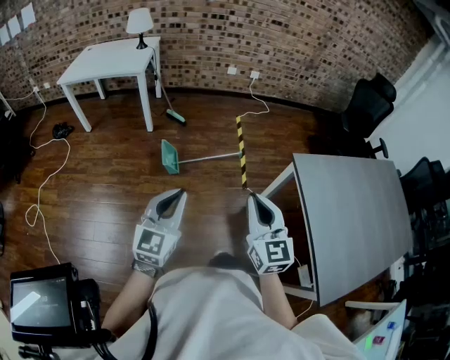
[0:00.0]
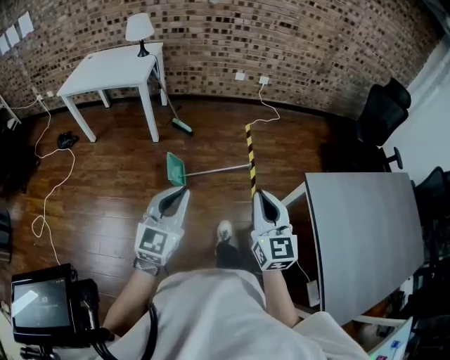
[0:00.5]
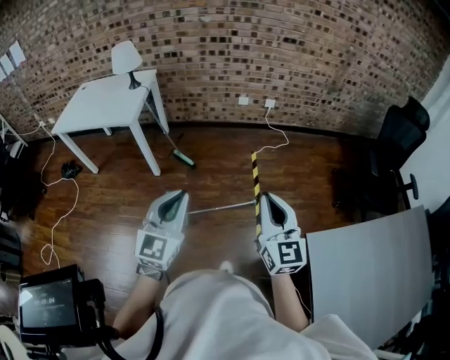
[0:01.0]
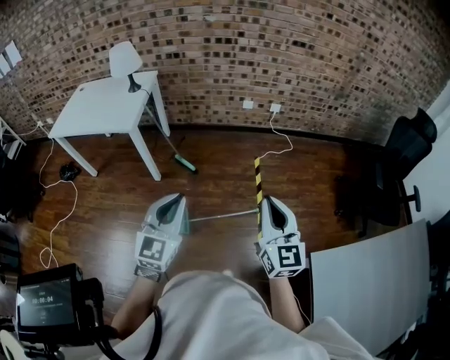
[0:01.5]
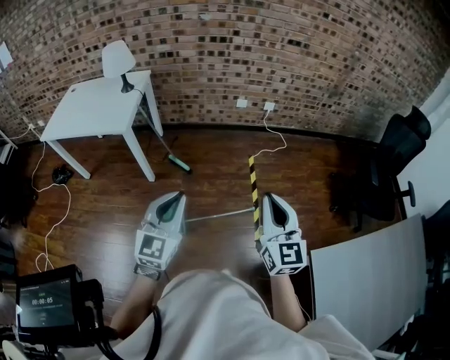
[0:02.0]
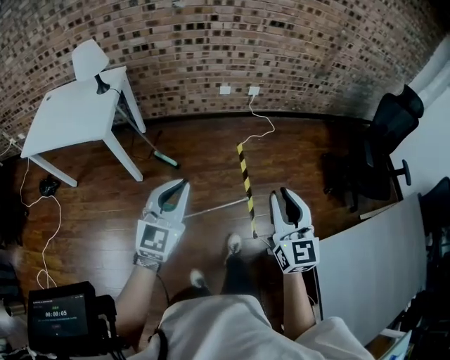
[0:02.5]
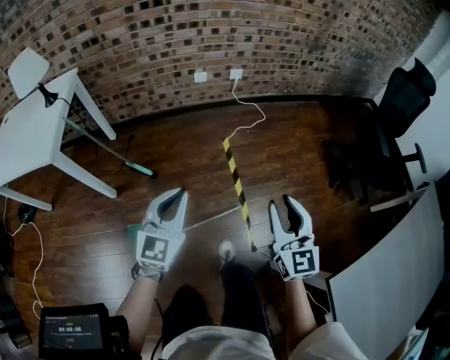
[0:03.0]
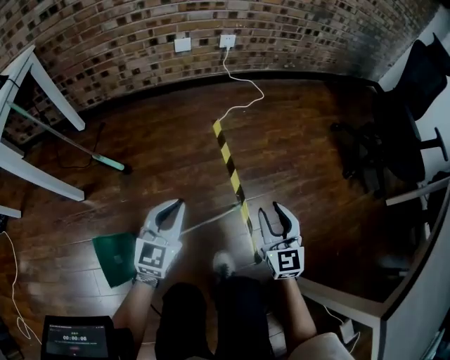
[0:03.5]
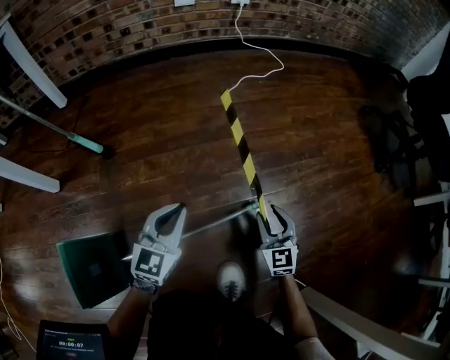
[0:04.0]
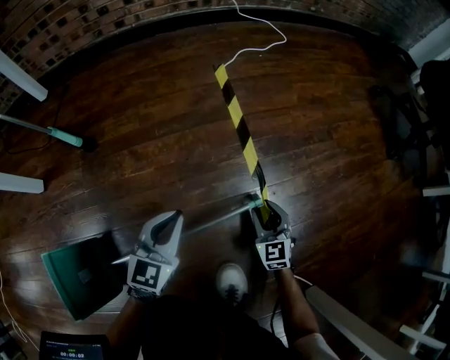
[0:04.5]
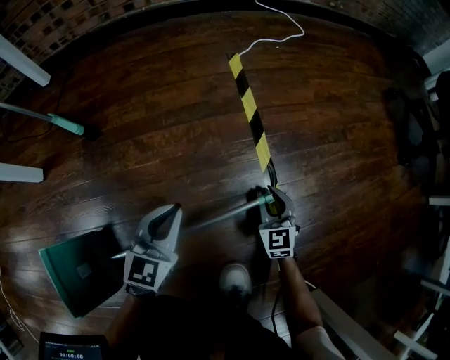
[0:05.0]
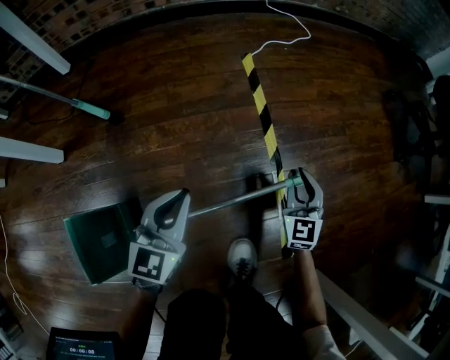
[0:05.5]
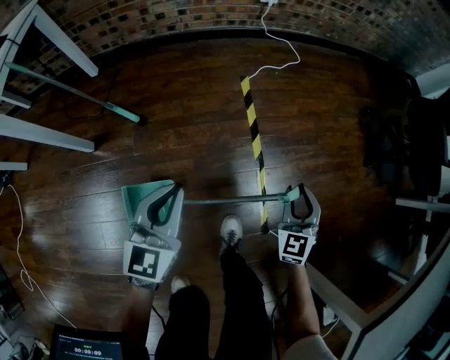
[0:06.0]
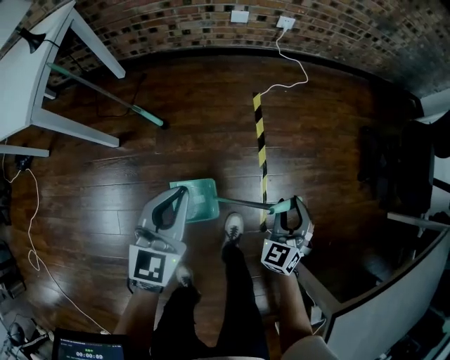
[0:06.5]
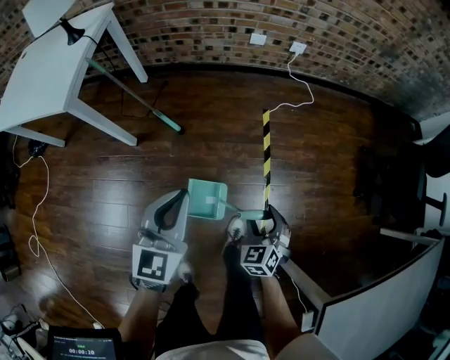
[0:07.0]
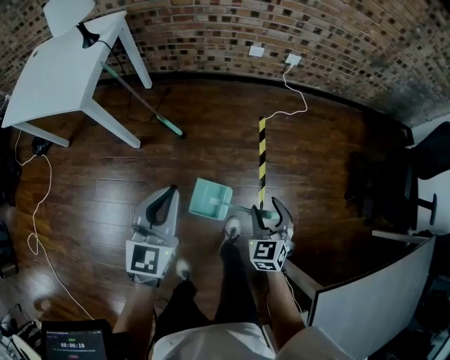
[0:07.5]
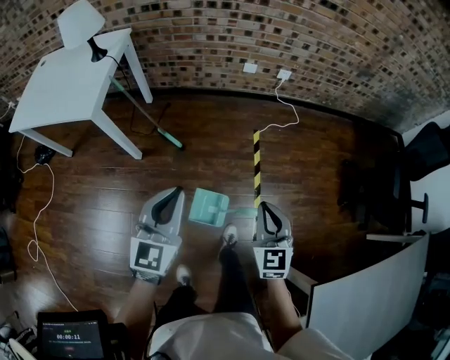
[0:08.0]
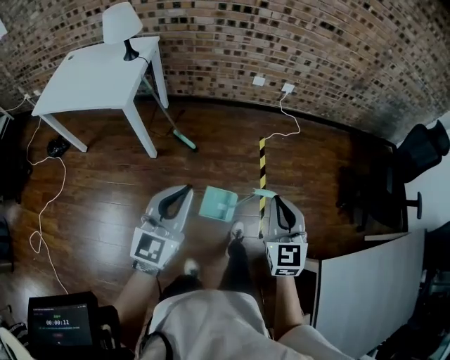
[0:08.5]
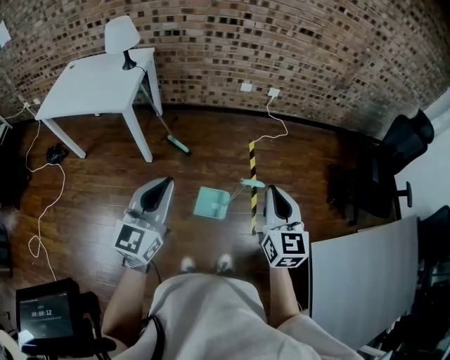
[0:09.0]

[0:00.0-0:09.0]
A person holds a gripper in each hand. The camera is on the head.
0:00.0 to 0:02.0: The pair of grippers is taken forward, roughly 50 cm.
0:02.0 to 0:04.5: The grippers both shift downward by some 1 m. The right gripper swivels approximately 30 degrees, and opens. Meanwhile the left gripper changes its angle by approximately 30 degrees.
0:04.5 to 0:07.0: Both grippers travel together upward, about 60 cm. The right gripper swivels some 20 degrees, and opens up, while the left gripper turns by roughly 20 degrees.
0:07.0 to 0:09.0: The two grippers go roughly 40 cm upward and backward. The right gripper points its fingers approximately 30 degrees further upward, and closes up.

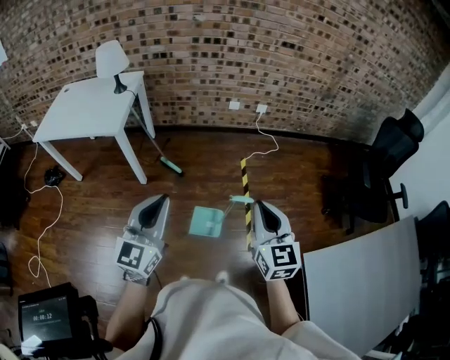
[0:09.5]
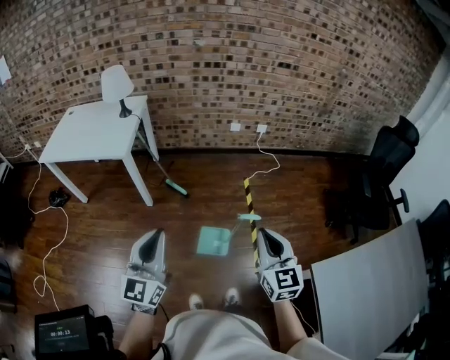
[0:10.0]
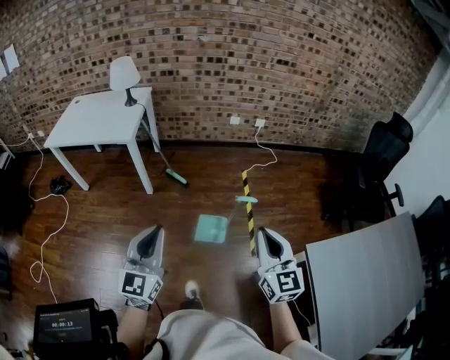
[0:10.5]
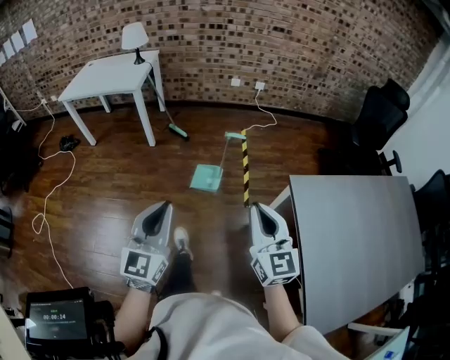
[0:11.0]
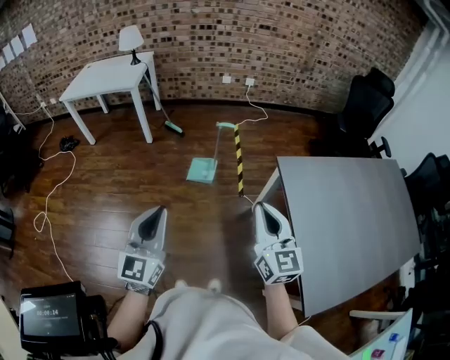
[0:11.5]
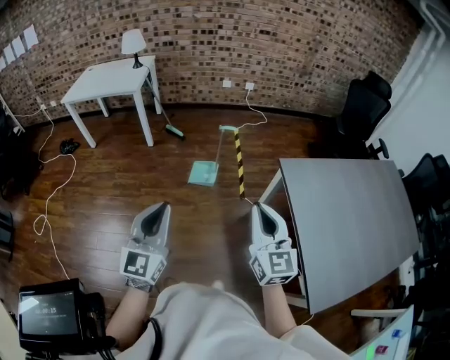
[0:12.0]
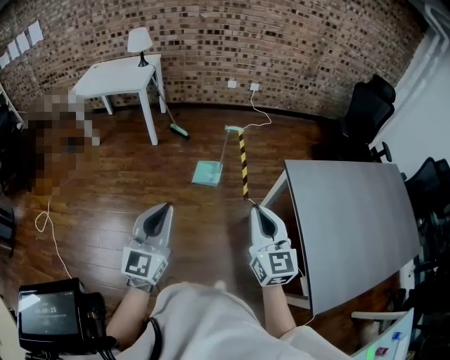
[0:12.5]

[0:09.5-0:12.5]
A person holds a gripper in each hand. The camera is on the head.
0:09.5 to 0:11.0: Both grippers travel together backward, approximately 40 cm.
0:11.0 to 0:12.5: The two grippers go some 15 cm backward.

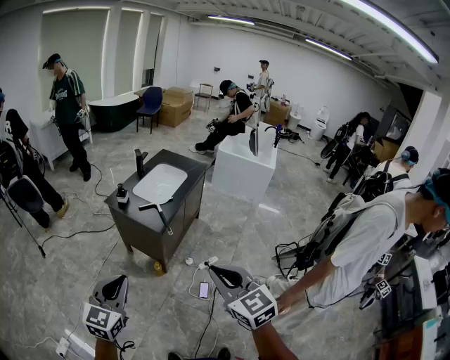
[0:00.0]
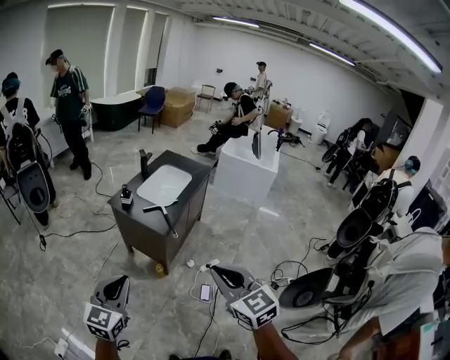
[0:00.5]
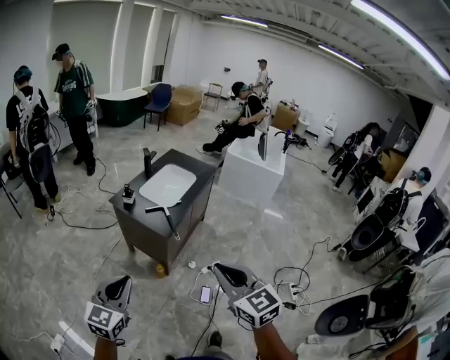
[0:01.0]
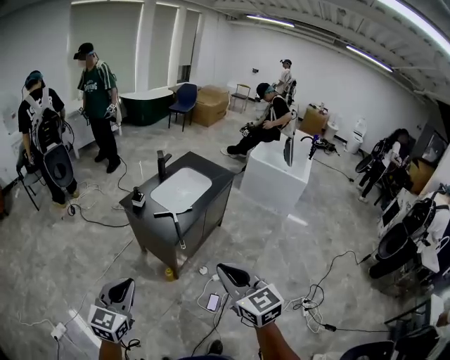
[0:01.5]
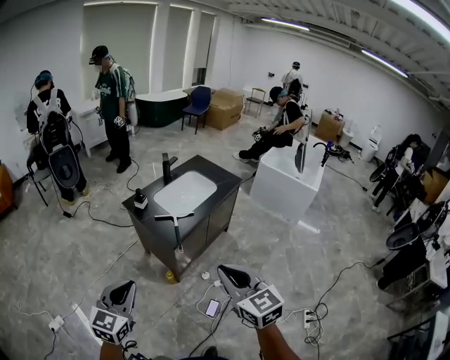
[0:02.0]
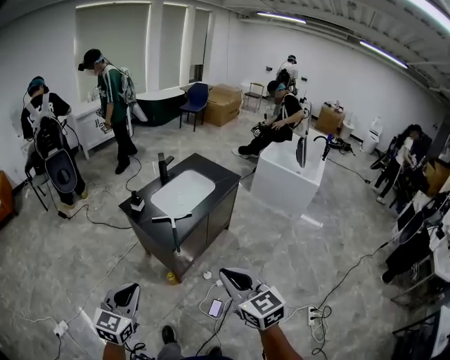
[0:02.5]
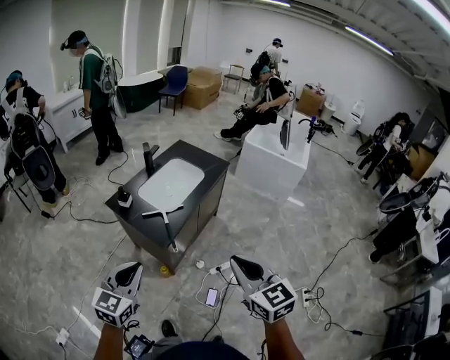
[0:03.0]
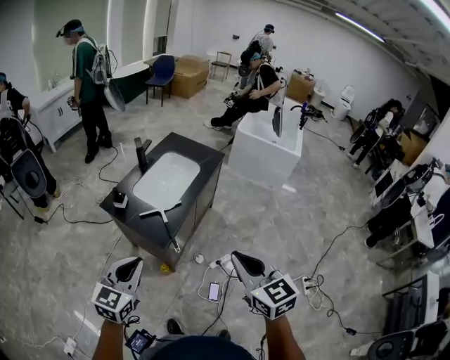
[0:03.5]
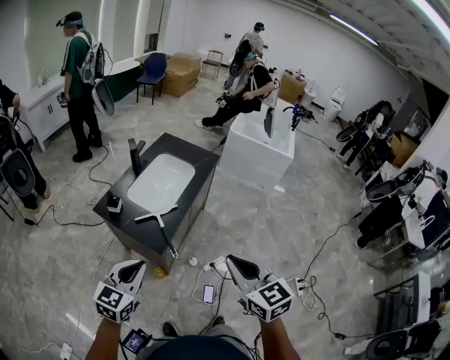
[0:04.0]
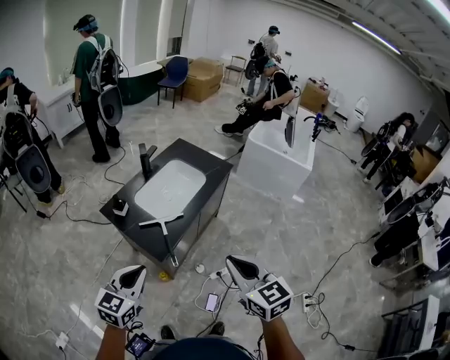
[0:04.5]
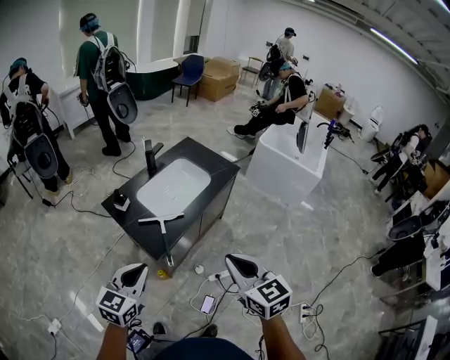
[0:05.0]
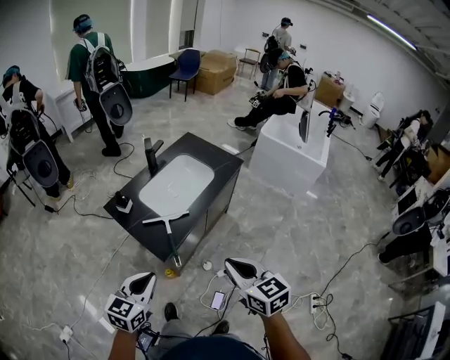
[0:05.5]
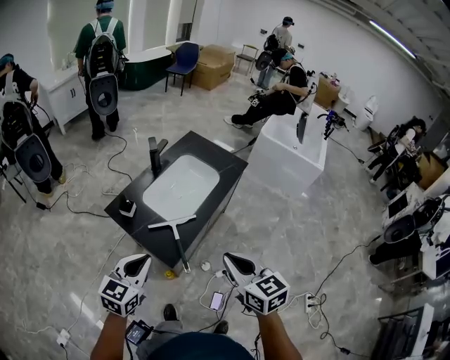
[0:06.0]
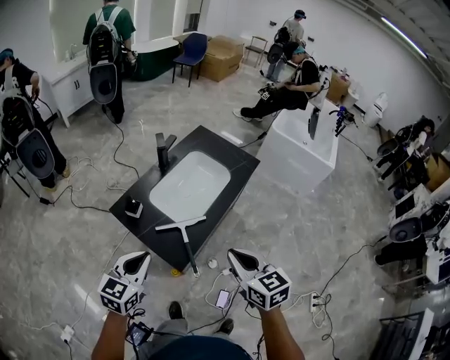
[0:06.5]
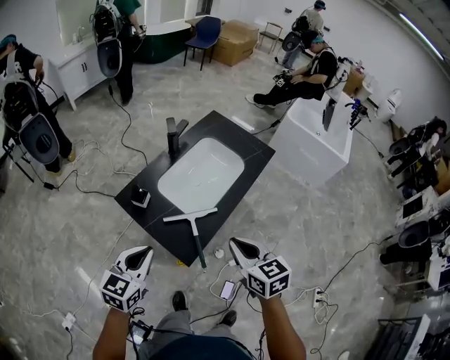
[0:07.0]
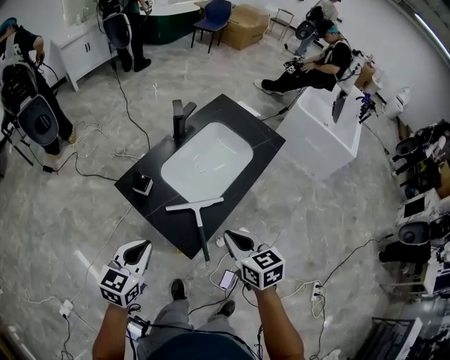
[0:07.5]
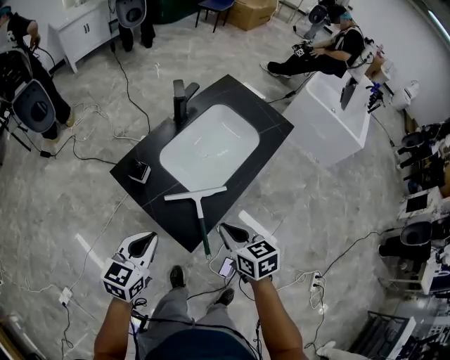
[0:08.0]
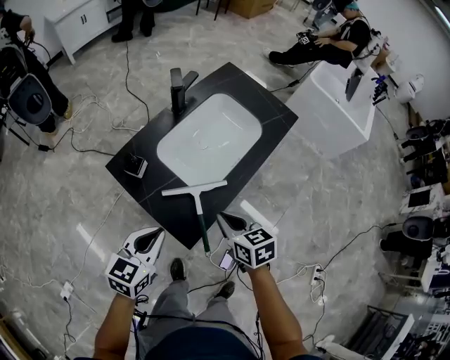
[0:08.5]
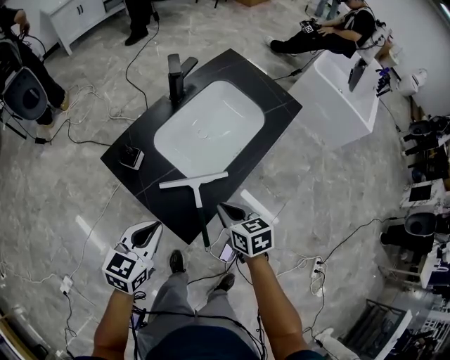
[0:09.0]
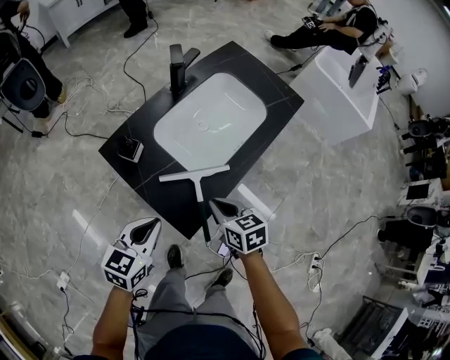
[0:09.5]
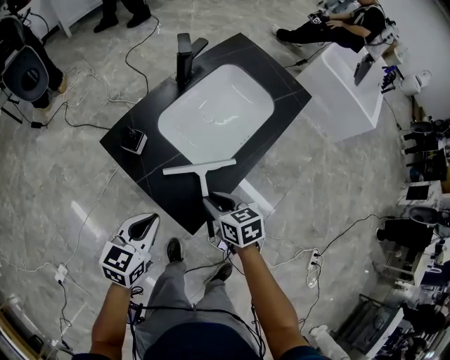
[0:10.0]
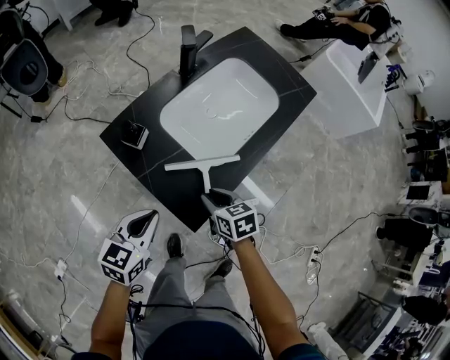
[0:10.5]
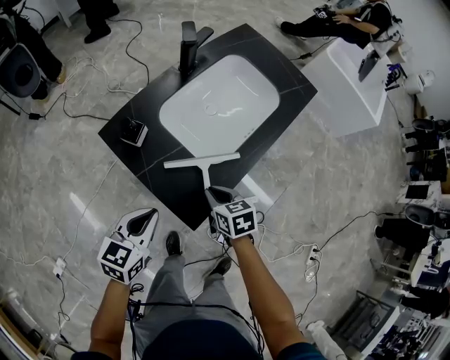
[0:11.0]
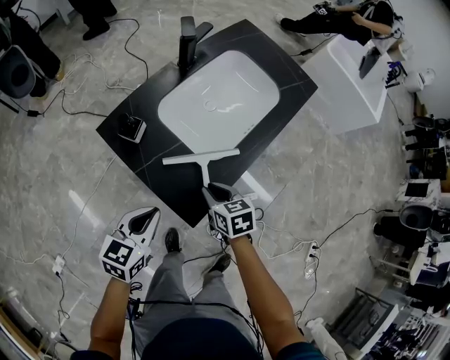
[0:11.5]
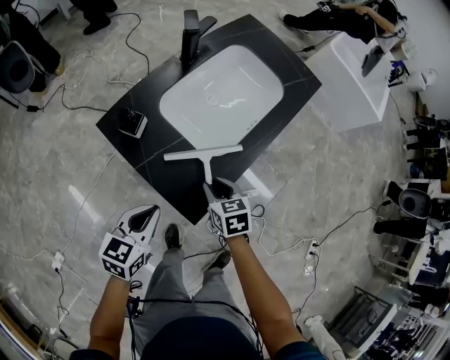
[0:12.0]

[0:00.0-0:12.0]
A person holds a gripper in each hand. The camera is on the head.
0:00.0 to 0:02.0: Both grippers move forward and to the right, some 20 cm.
0:02.0 to 0:04.0: The left gripper moves forward, some 25 cm, and swivels roughly 20 degrees; the right gripper moves forward, roughly 15 cm.
0:04.0 to 0:06.0: The left gripper is displaced forward by approximately 15 cm; the right gripper is displaced forward and downward by approximately 15 cm.
0:06.0 to 0:08.0: The left gripper shifts approximately 20 cm downward, forward and to the left. Meanwhile the right gripper travels downward and forward by approximately 25 cm, and changes its angle by some 20 degrees.
0:08.0 to 0:10.0: The grippers both shift downward by approximately 10 cm. The right gripper opens its fingers.
0:10.0 to 0:12.0: The right gripper shifts some 5 cm downward.

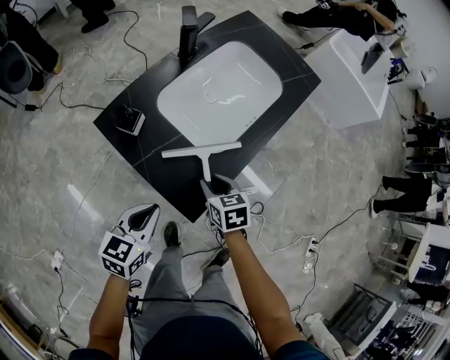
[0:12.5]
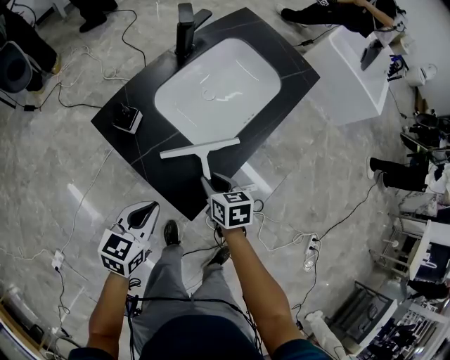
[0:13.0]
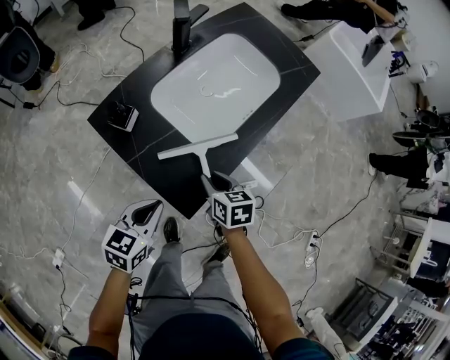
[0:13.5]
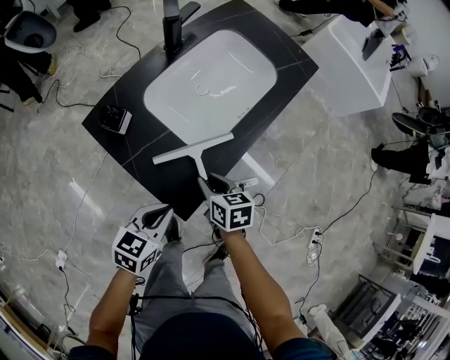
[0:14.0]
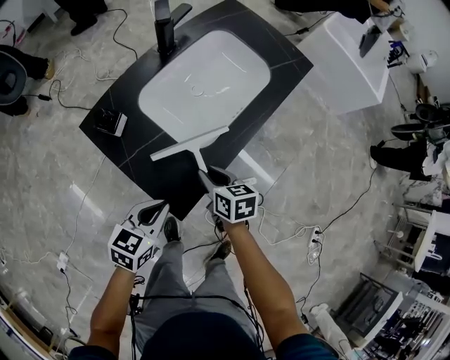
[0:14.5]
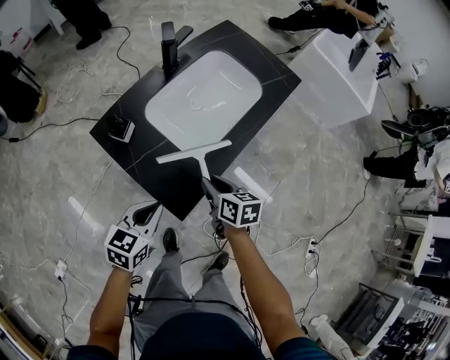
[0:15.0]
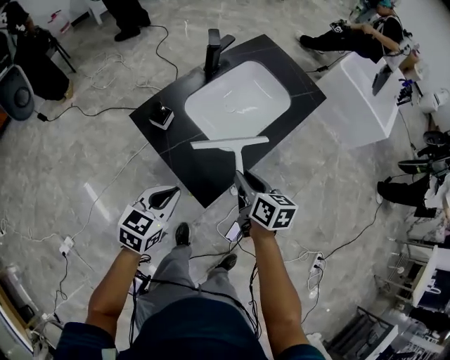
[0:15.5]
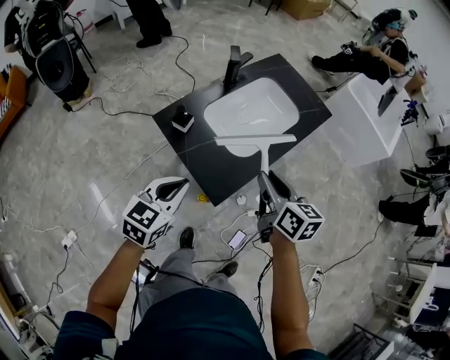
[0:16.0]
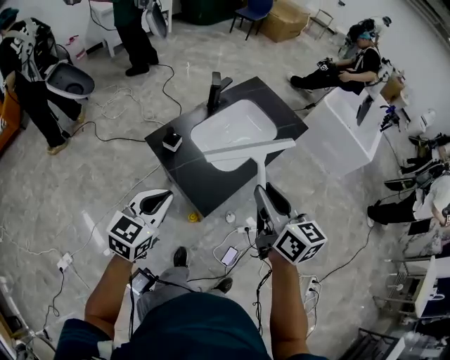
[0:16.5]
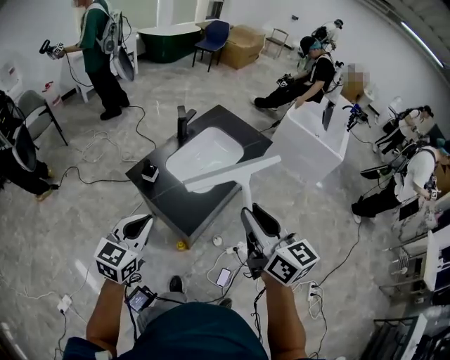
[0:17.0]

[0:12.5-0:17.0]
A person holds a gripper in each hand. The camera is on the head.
0:12.5 to 0:14.5: The left gripper heads to the right, covering some 5 cm.
0:14.5 to 0:17.0: The left gripper is displaced upward by about 35 cm, and rotates approximately 30 degrees. The right gripper is displaced upward and backward by some 50 cm, and tilts its fingers roughly 40 degrees upward.
